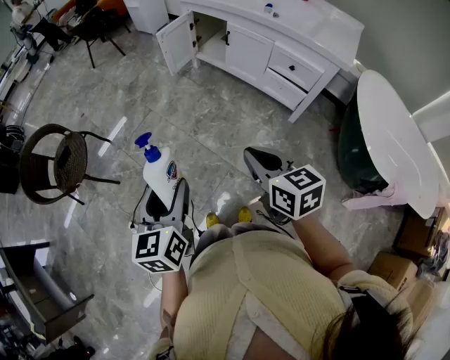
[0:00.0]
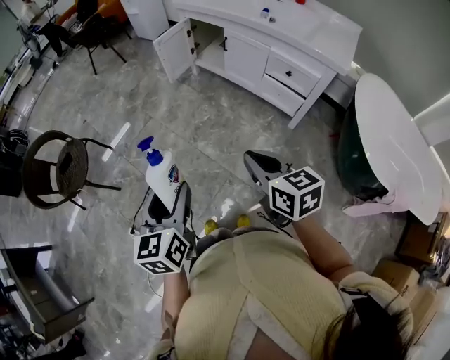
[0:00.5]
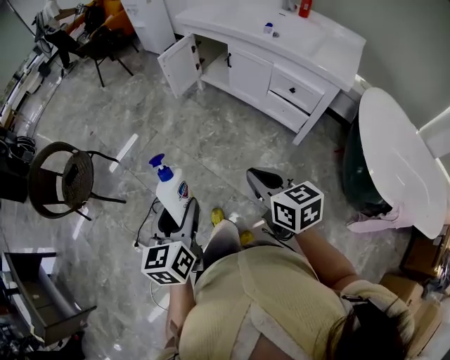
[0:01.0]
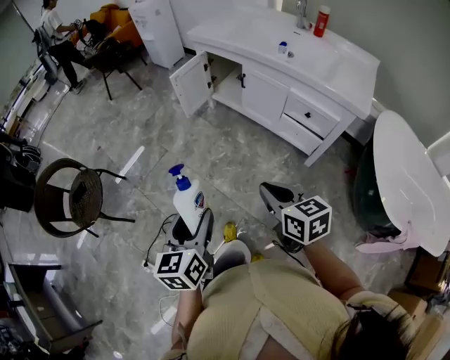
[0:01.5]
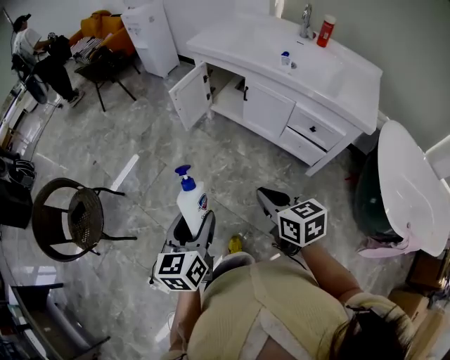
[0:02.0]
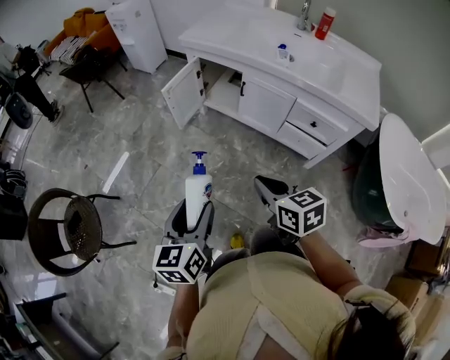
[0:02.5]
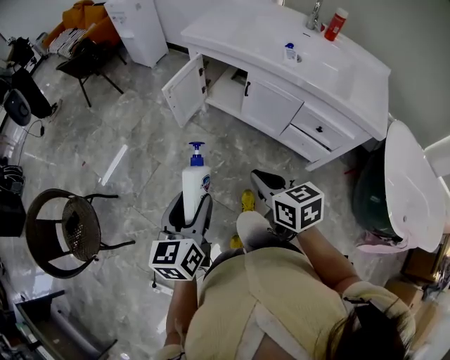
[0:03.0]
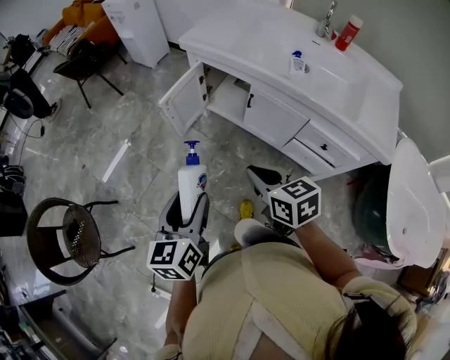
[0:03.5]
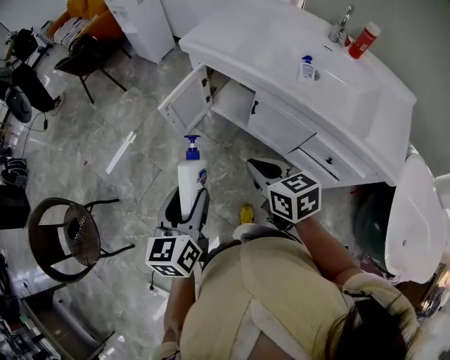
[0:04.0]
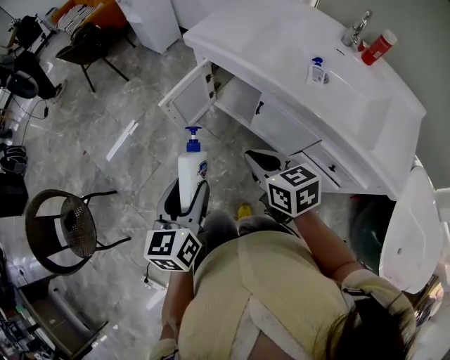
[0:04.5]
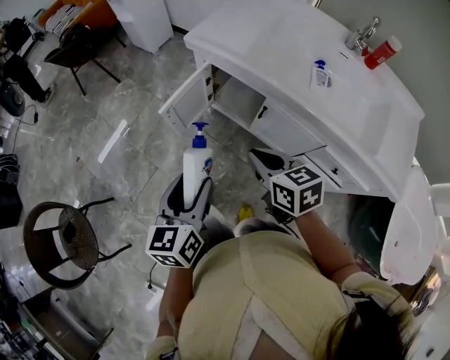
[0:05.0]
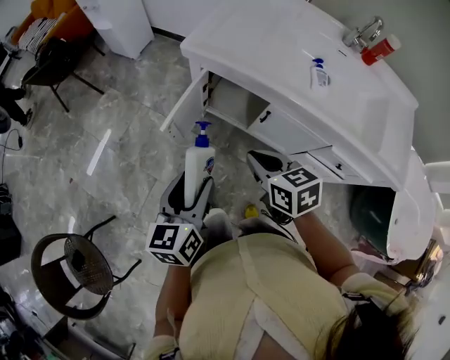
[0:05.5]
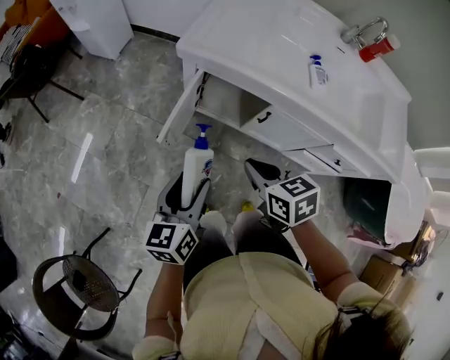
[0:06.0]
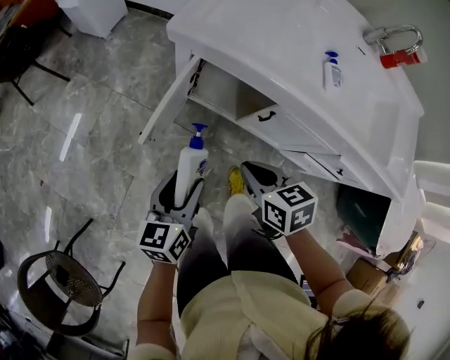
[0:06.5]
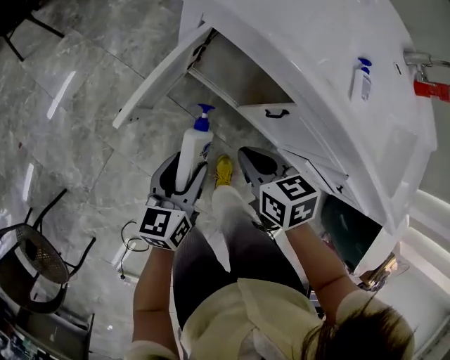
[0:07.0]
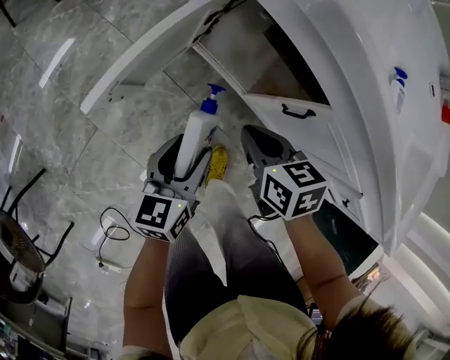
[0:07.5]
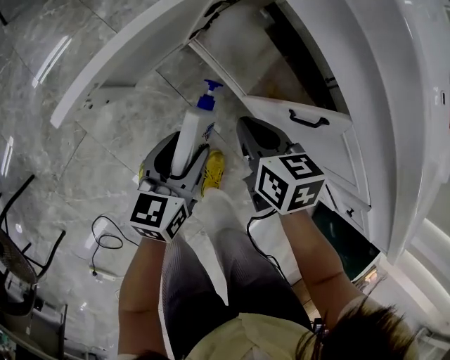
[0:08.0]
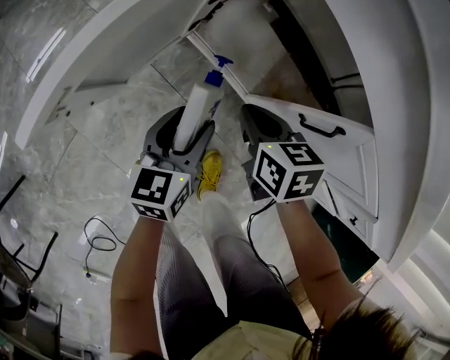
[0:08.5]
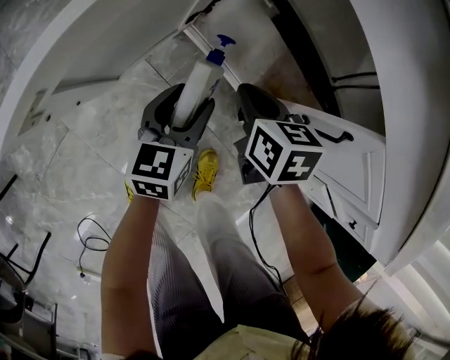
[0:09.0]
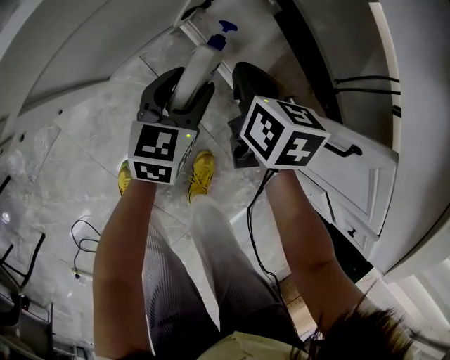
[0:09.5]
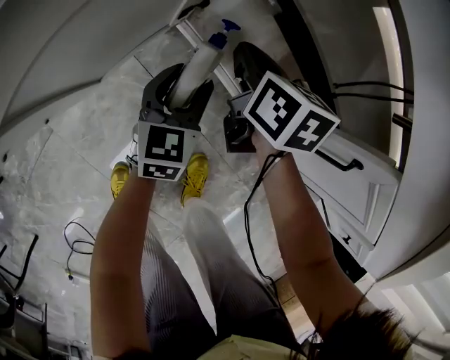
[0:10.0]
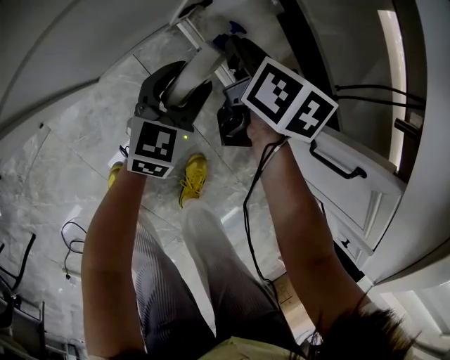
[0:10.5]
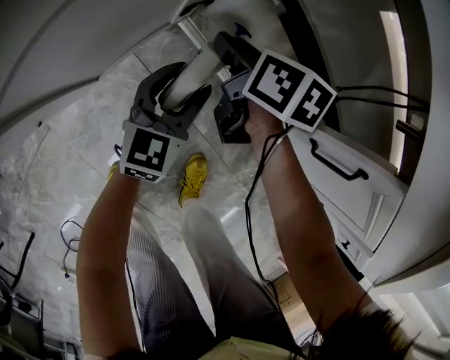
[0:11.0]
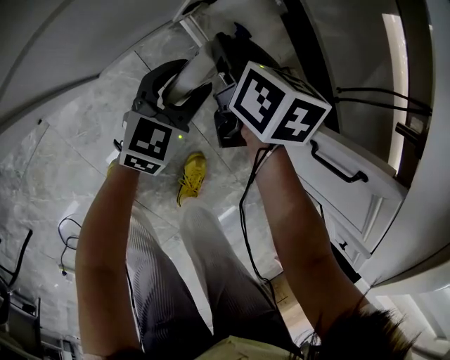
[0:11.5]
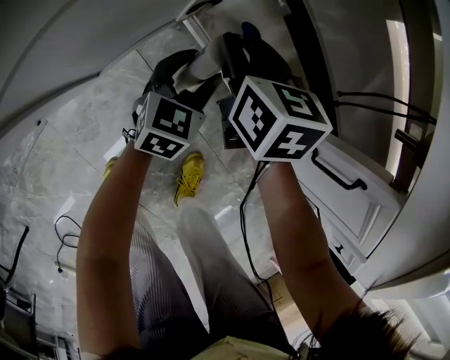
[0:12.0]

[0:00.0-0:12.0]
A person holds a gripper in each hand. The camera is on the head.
0:00.0 to 0:02.0: The grippers both shift forward by about 20 cm.
0:02.0 to 0:04.0: The two grippers go roughly 30 cm forward.
0:04.0 to 0:06.0: The right gripper shifts approximately 20 cm forward and to the left. Meanwhile the left gripper is displaced forward by about 25 cm, and rotates about 20 degrees.
0:06.0 to 0:08.0: Both grippers move downward, approximately 30 cm.
0:08.0 to 0:10.0: The left gripper heads downward and forward, covering approximately 20 cm, and changes its angle by approximately 20 degrees, while the right gripper heads forward and downward, covering roughly 20 cm.
0:10.0 to 0:12.0: The right gripper opens its fingers.

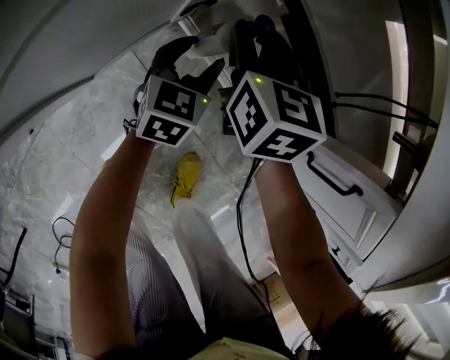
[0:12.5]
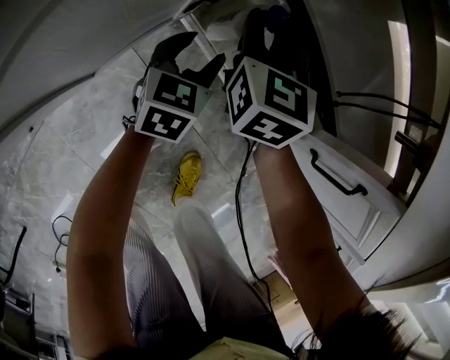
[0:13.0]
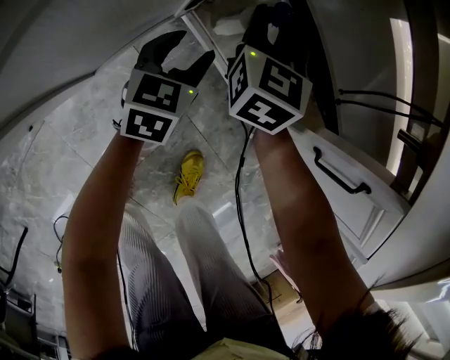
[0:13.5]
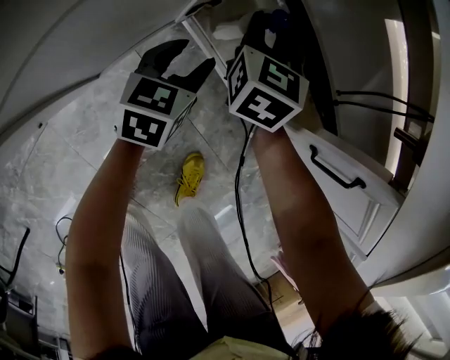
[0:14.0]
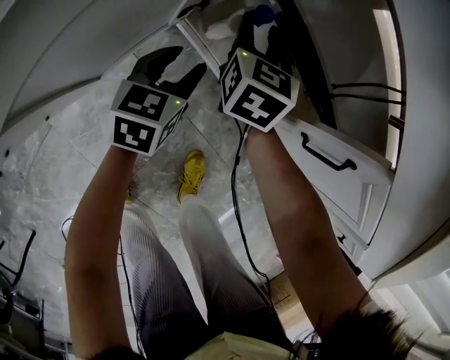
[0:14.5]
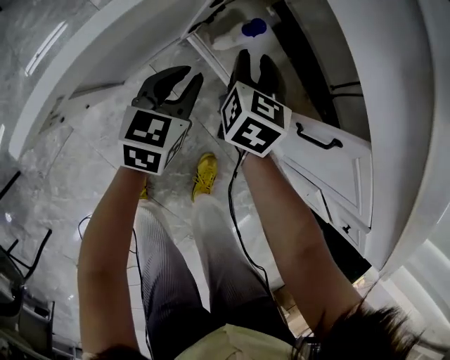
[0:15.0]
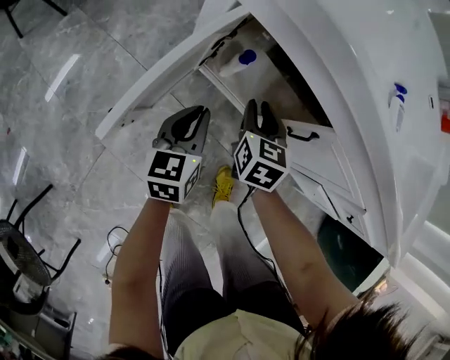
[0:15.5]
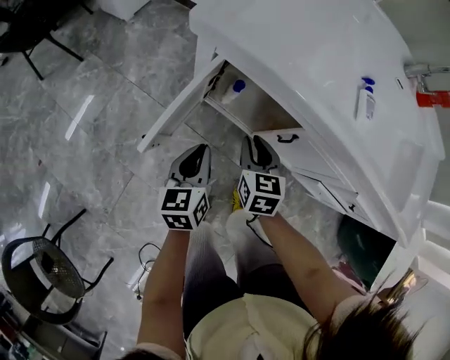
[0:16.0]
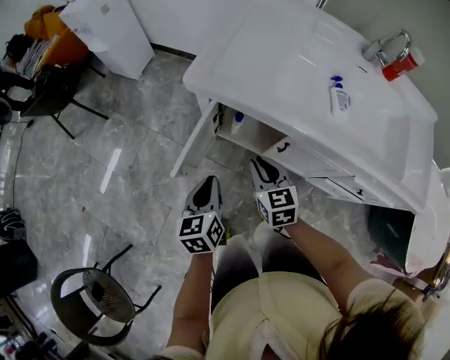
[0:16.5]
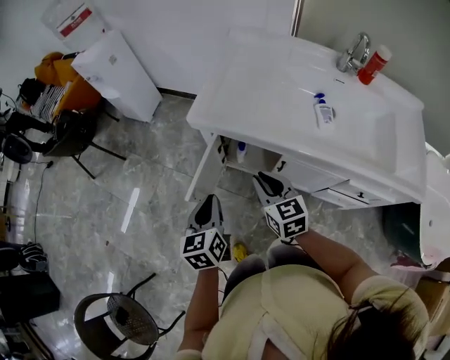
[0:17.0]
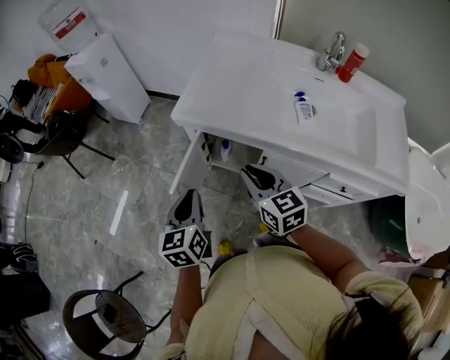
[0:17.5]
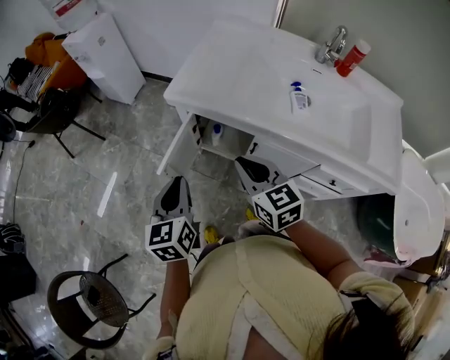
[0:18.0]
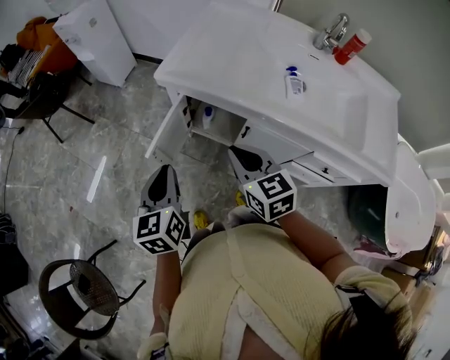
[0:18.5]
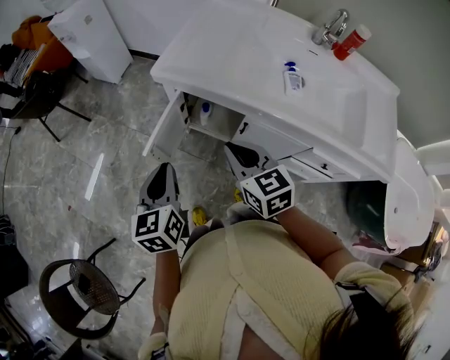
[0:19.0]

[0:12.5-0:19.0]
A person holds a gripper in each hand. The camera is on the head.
0:12.5 to 0:14.5: The left gripper ends up approximately 5 cm from where it was.
0:14.5 to 0:17.0: The left gripper travels upward by approximately 50 cm, and closes up. Meanwhile the right gripper goes about 50 cm upward and backward, and closes its fingers.
0:17.0 to 0:19.0: The right gripper goes roughly 10 cm backward and upward. Meanwhile the left gripper heads backward, covering approximately 5 cm.

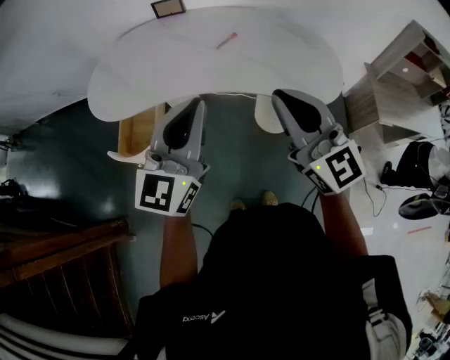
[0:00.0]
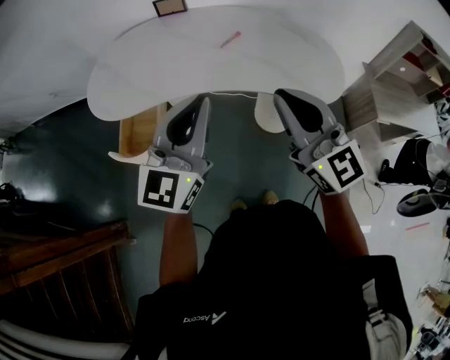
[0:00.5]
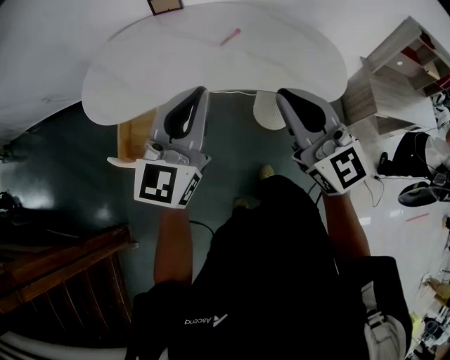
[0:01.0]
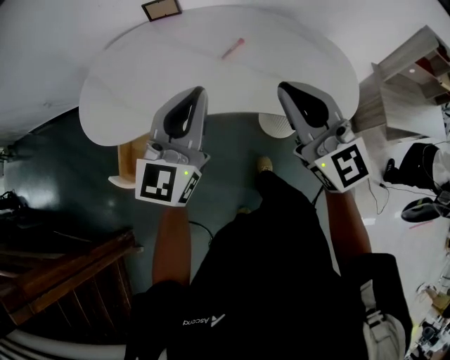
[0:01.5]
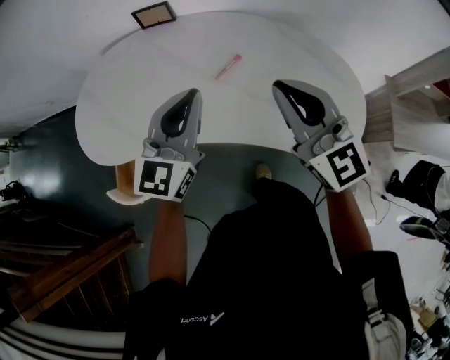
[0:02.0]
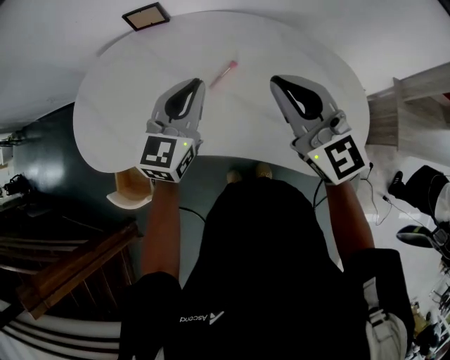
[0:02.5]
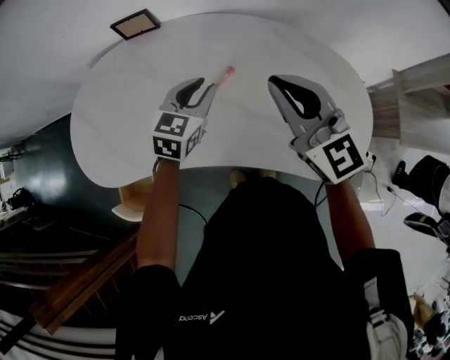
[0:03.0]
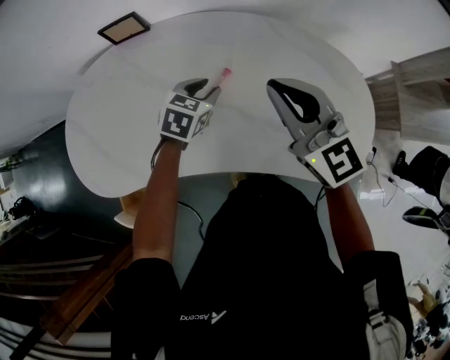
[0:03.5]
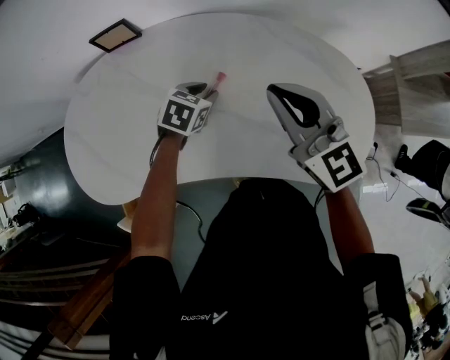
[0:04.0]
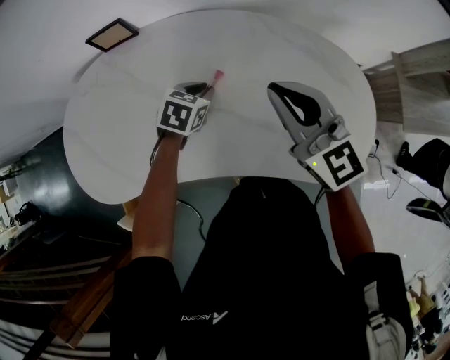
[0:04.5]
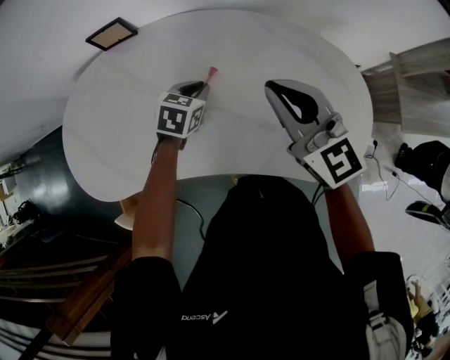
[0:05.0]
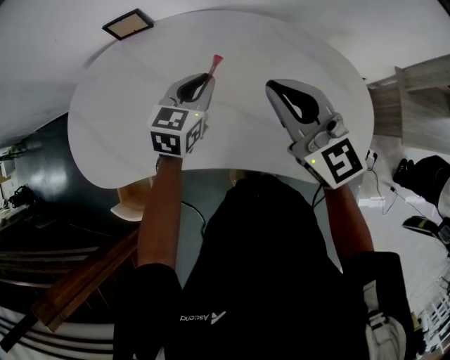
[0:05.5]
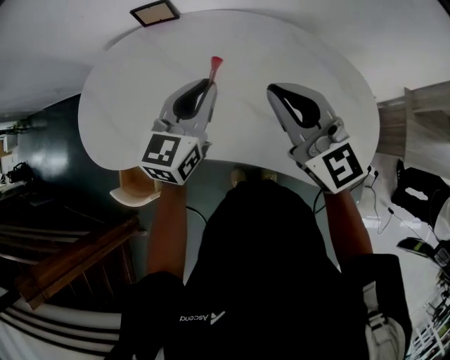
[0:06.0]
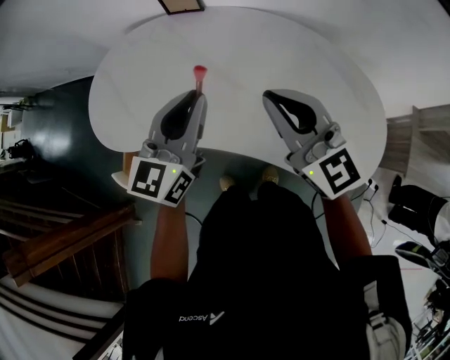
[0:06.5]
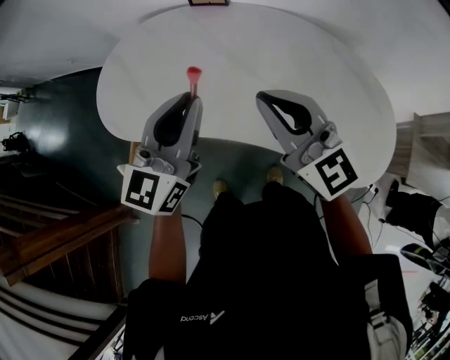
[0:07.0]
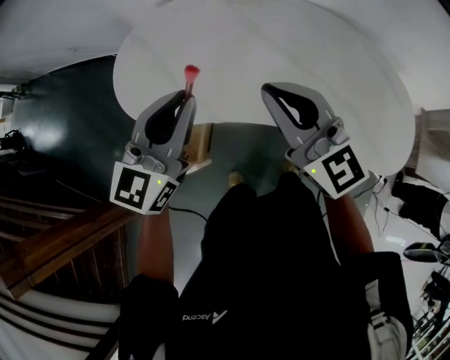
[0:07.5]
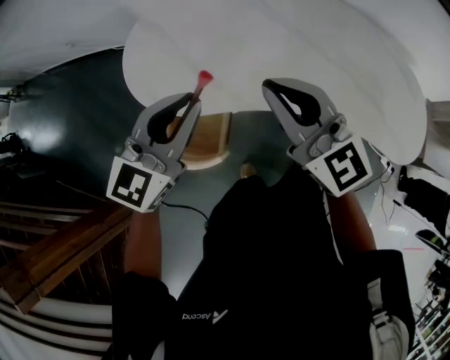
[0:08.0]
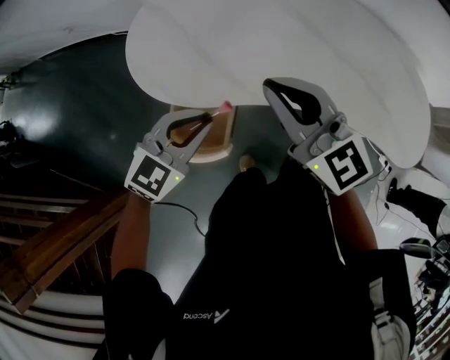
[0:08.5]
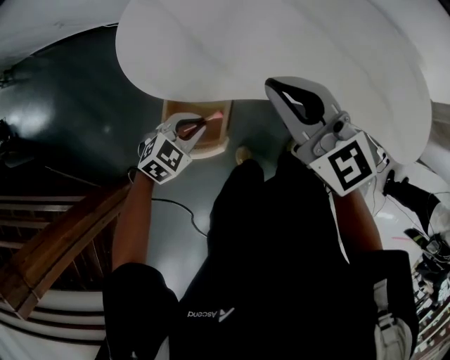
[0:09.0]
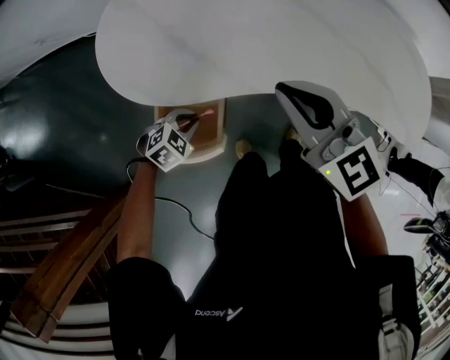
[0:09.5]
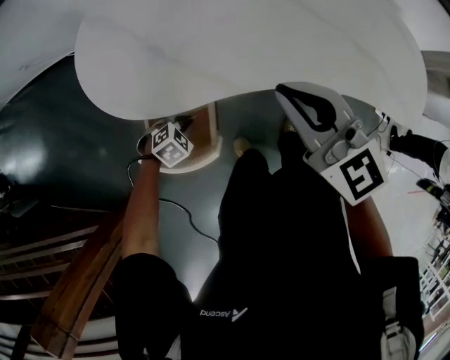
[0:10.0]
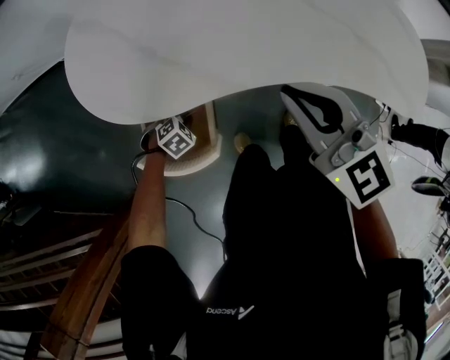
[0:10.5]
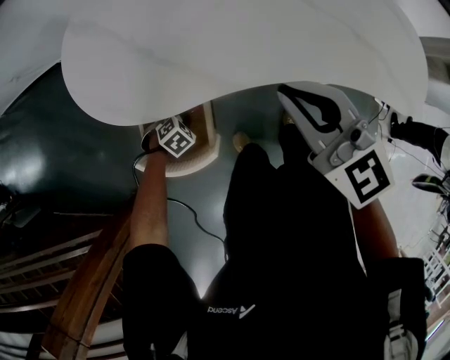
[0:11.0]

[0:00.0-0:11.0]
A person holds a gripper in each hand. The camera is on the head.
0:00.0 to 0:02.0: The grippers both shift forward by roughly 25 cm.
0:02.0 to 0:03.5: The left gripper moves downward and forward, about 30 cm, tips its fingers downward by some 50 degrees, and opens; the right gripper shifts some 15 cm forward and downward.
0:03.5 to 0:05.5: The left gripper heads upward, covering about 5 cm, and closes its fingers.
0:05.5 to 0:07.5: The right gripper goes roughly 35 cm to the left. The left gripper moves to the left, upward and backward, roughly 40 cm, and changes its angle by approximately 30 degrees.
0:07.5 to 0:09.0: The right gripper shifts approximately 15 cm to the left and downward, while the left gripper shifts approximately 35 cm downward and to the left, and points its fingers some 50 degrees further downward.
0:09.0 to 0:11.0: The right gripper ends up about 10 cm from where it was. The left gripper moves downward, some 20 cm, and changes its angle by some 30 degrees.
